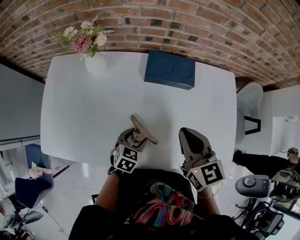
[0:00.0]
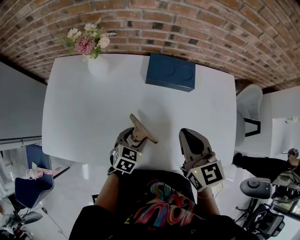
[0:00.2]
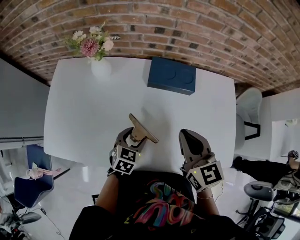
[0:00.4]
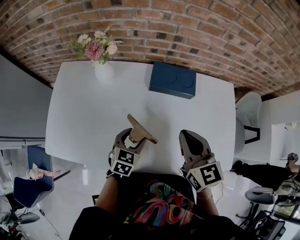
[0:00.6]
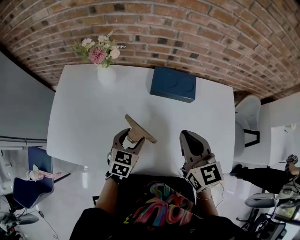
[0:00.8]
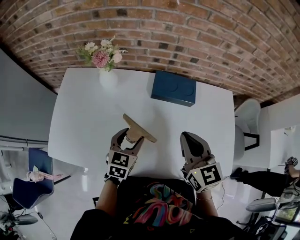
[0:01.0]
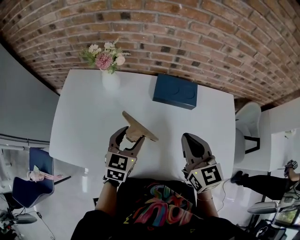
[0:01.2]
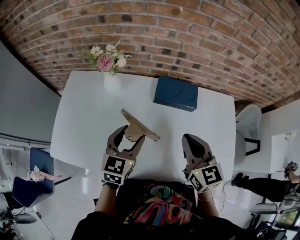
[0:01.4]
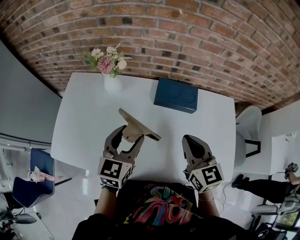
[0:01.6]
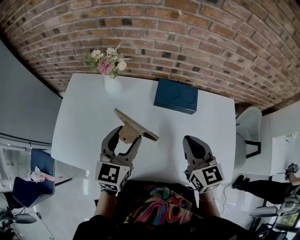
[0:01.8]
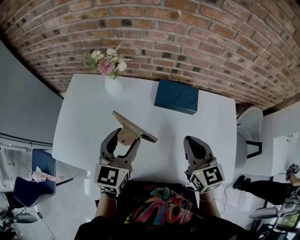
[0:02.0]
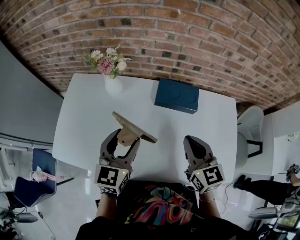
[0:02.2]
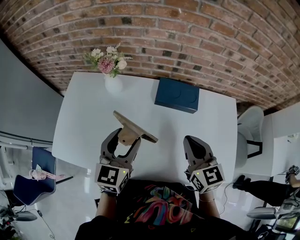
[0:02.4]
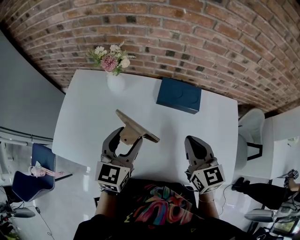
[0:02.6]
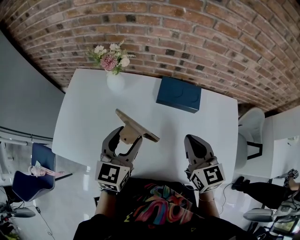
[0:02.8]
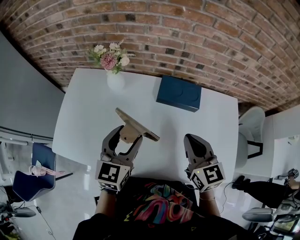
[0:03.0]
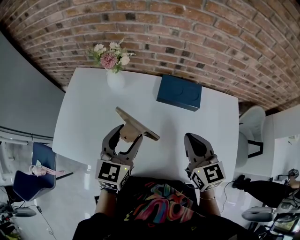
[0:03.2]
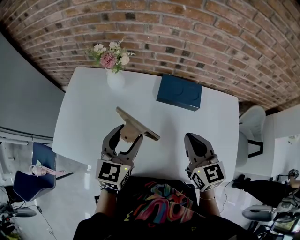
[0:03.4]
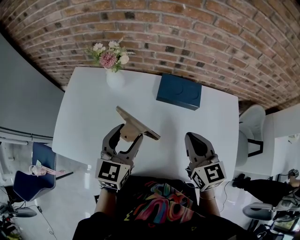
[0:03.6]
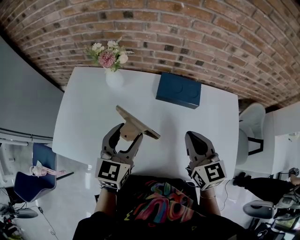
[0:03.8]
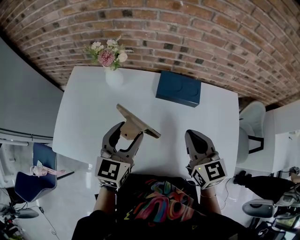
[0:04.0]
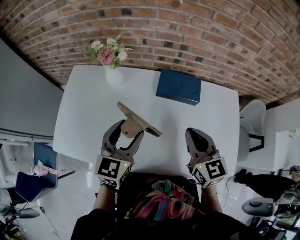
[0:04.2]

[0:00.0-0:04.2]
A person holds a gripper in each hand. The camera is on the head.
0:00.0 to 0:01.4: The left gripper moves upward, roughly 20 cm, and turns by roughly 30 degrees.
0:01.4 to 0:02.8: The grippers make only small movements.
0:02.8 to 0:04.2: Both grippers stay put.

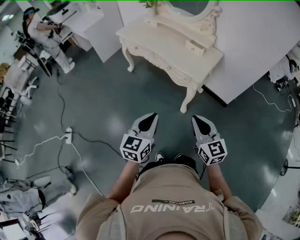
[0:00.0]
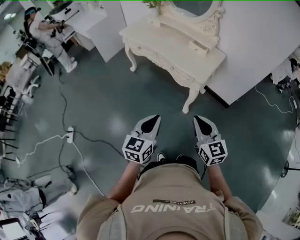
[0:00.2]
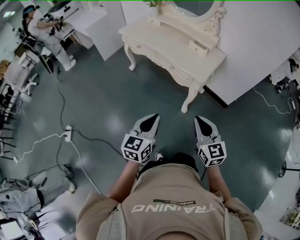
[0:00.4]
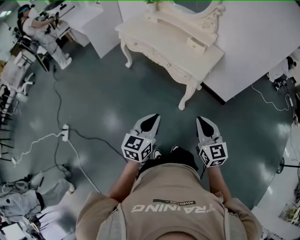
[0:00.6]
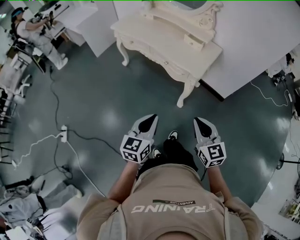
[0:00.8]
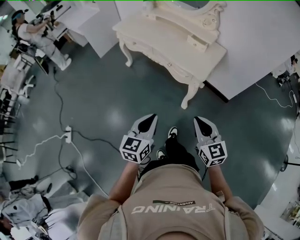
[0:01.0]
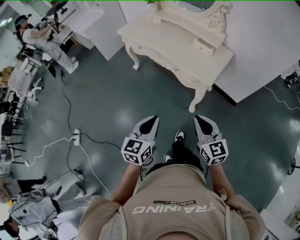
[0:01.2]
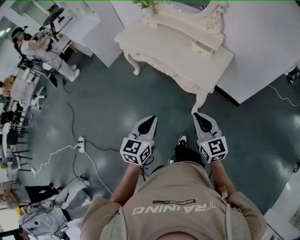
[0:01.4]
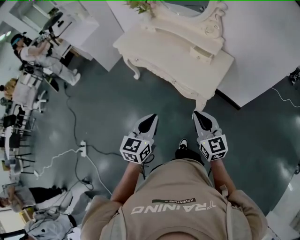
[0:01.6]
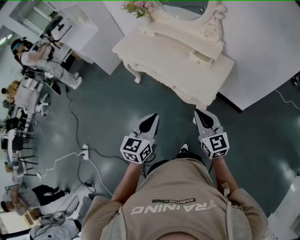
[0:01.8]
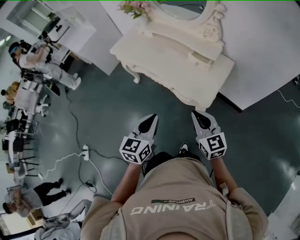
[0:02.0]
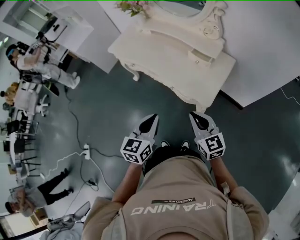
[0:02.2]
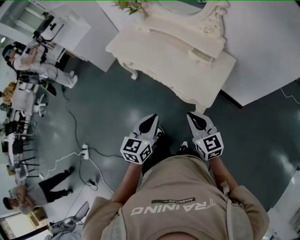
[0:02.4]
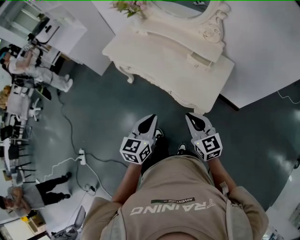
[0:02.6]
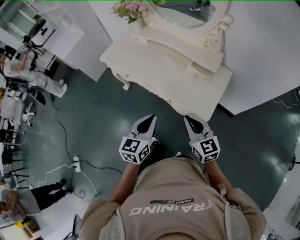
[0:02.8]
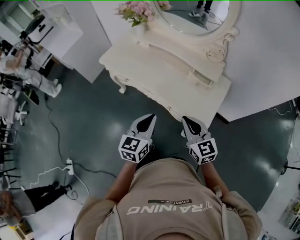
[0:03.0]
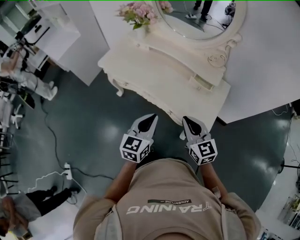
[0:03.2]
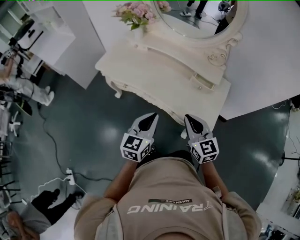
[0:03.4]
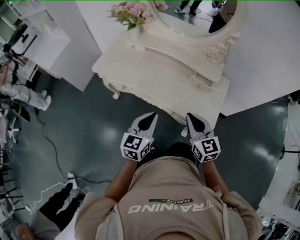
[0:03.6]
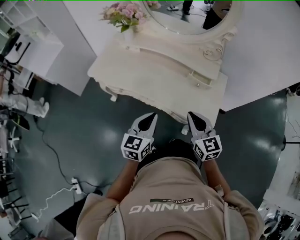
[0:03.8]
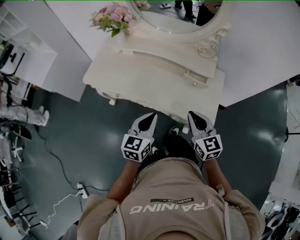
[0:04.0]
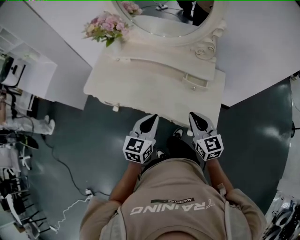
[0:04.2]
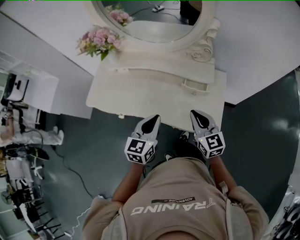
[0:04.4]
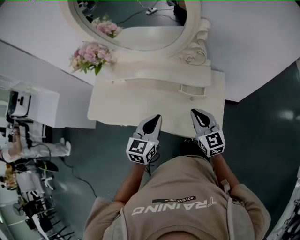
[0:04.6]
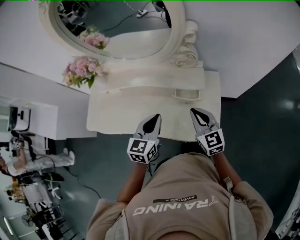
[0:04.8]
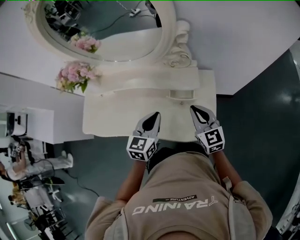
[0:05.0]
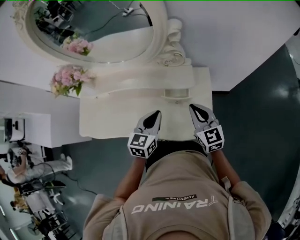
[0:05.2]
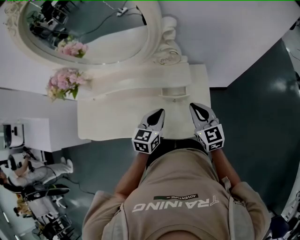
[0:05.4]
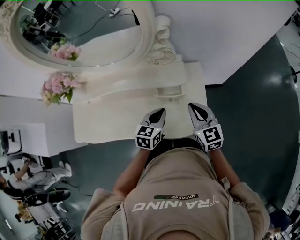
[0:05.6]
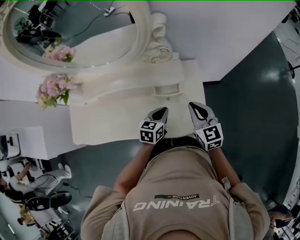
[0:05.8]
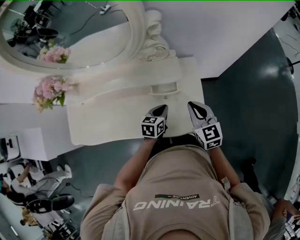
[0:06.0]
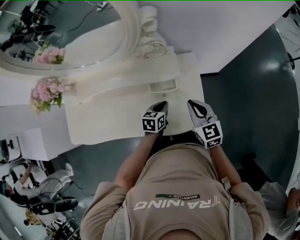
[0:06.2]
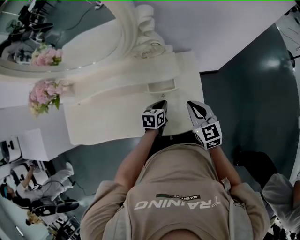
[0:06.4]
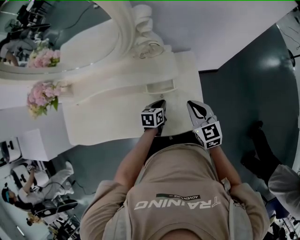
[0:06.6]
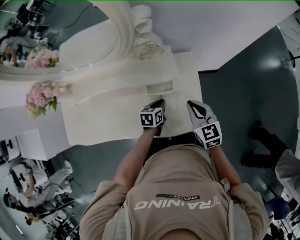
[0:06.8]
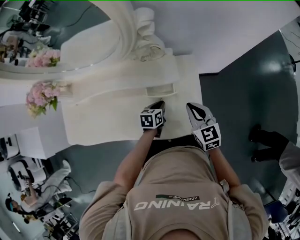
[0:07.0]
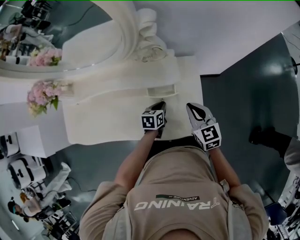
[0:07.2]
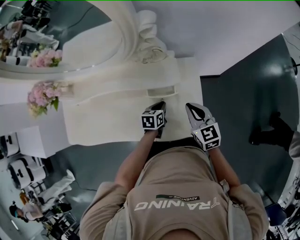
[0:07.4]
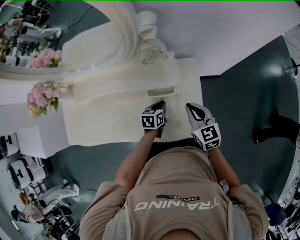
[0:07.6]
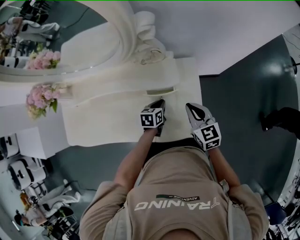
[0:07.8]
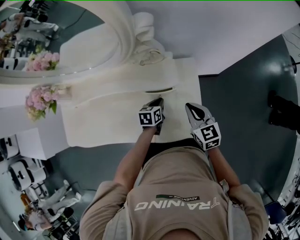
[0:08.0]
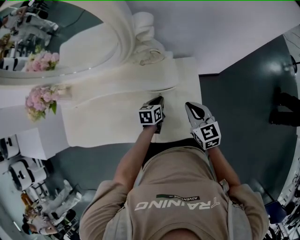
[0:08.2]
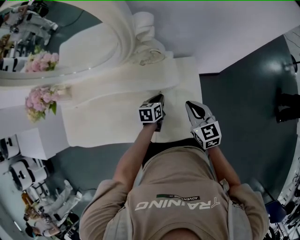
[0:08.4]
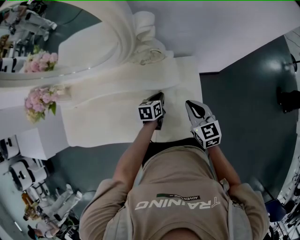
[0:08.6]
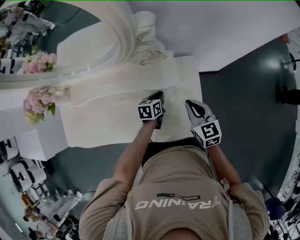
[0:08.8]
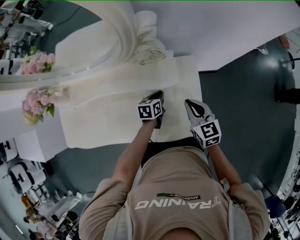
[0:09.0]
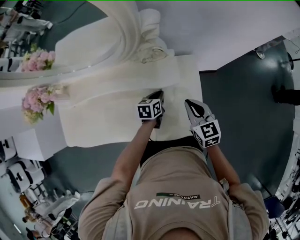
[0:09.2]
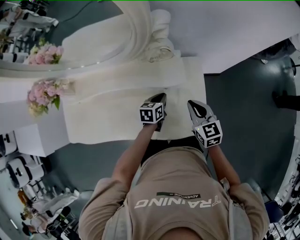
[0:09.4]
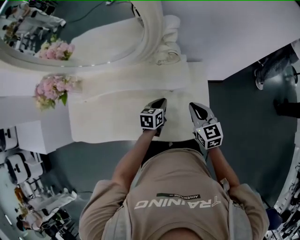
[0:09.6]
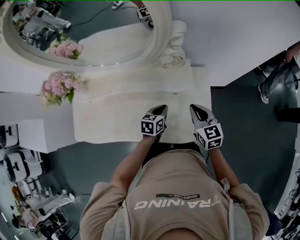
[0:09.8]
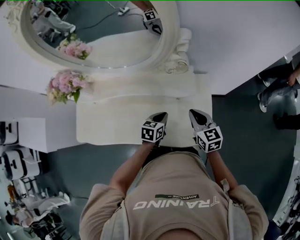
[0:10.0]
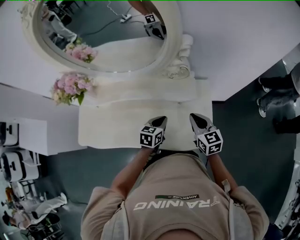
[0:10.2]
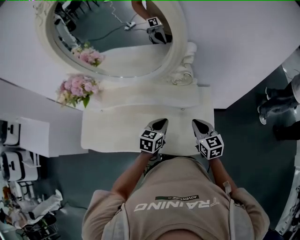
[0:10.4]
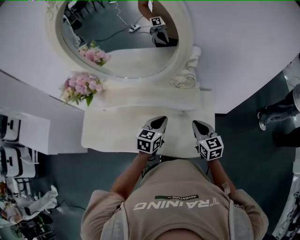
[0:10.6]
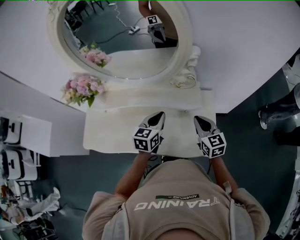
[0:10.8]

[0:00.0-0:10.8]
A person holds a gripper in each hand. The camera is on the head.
0:00.0 to 0:01.6: Both grippers travel together forward, roughly 20 cm.
0:01.6 to 0:03.0: Both grippers move forward, about 20 cm.
0:03.0 to 0:04.6: Both grippers travel together forward, approximately 20 cm. The left gripper turns by approximately 20 degrees, while the right gripper swivels some 20 degrees.
0:04.6 to 0:06.2: The left gripper travels downward, to the right and forward by roughly 25 cm, and swivels about 30 degrees. Meanwhile the right gripper goes some 15 cm to the right, downward and forward.
0:06.2 to 0:07.8: The left gripper ends up about 5 cm from where it was.
0:07.8 to 0:09.2: The grippers move only a little.
0:09.2 to 0:10.8: The right gripper moves upward and to the left, some 10 cm. Meanwhile the left gripper travels upward and to the left by roughly 25 cm, and changes its angle by approximately 30 degrees.

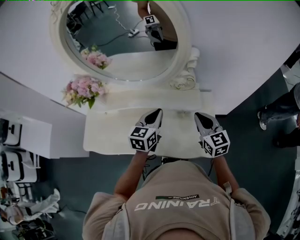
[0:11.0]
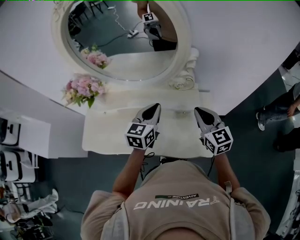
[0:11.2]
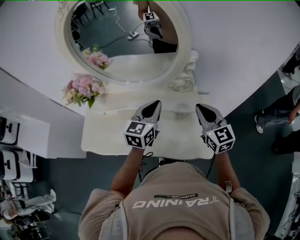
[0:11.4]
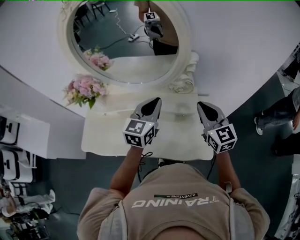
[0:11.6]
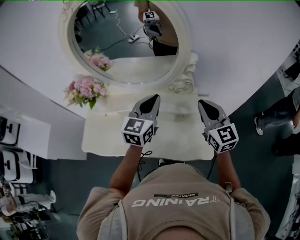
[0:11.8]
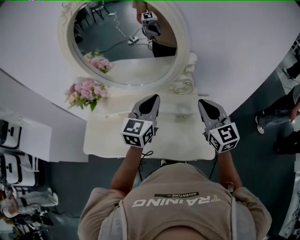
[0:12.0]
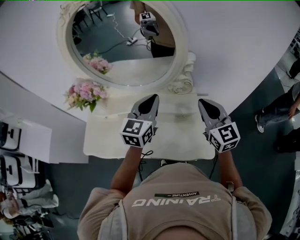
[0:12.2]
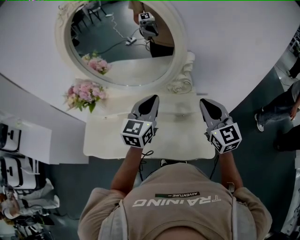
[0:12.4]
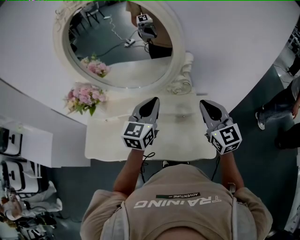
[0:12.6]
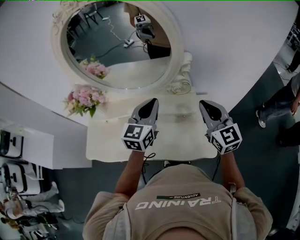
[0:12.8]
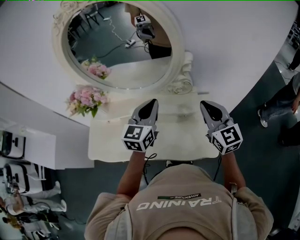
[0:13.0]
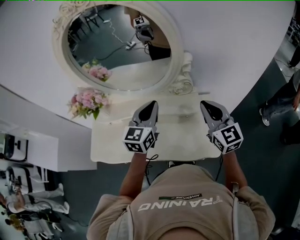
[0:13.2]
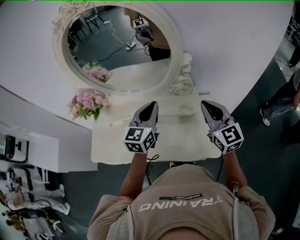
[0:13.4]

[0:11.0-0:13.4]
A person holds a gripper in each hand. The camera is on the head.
0:11.0 to 0:12.2: The grippers both shift upward by some 10 cm.
0:12.2 to 0:13.4: There are only small adjustments of the grippers.

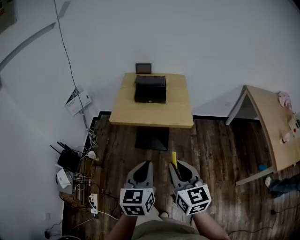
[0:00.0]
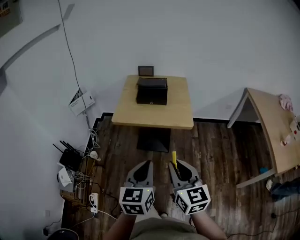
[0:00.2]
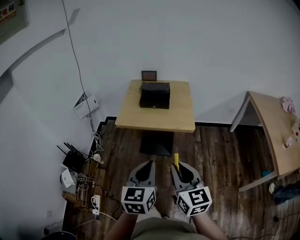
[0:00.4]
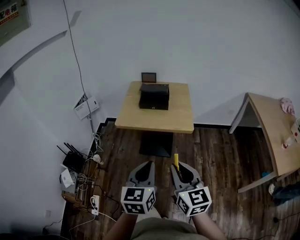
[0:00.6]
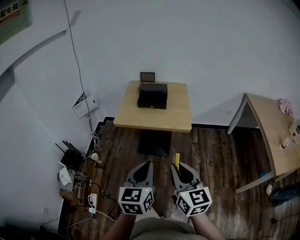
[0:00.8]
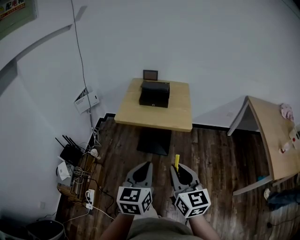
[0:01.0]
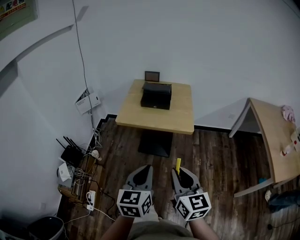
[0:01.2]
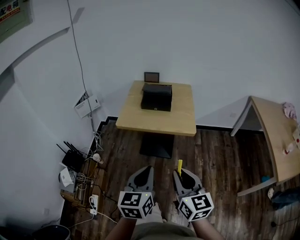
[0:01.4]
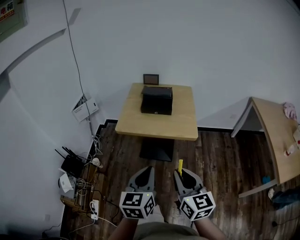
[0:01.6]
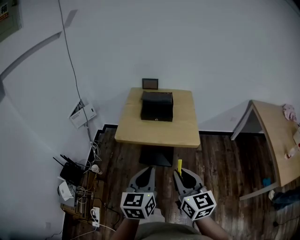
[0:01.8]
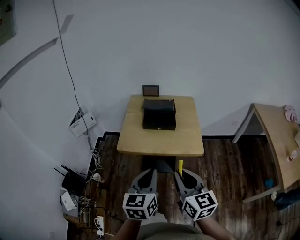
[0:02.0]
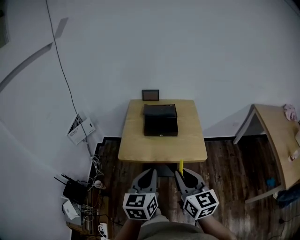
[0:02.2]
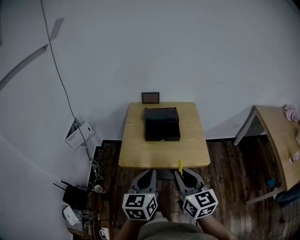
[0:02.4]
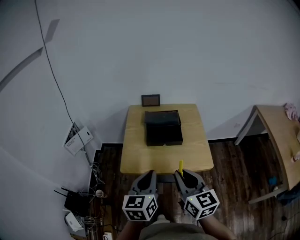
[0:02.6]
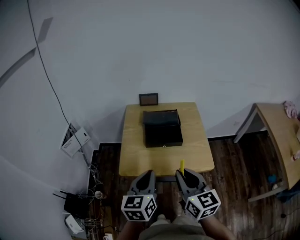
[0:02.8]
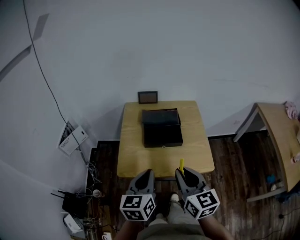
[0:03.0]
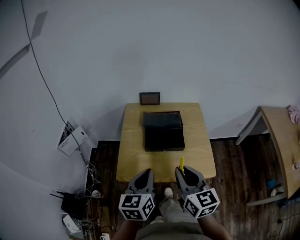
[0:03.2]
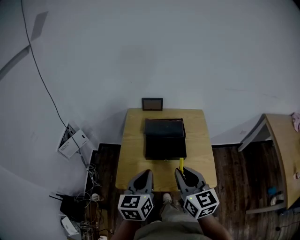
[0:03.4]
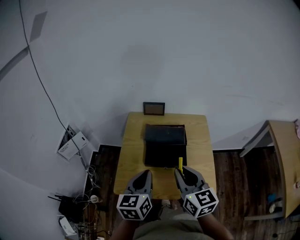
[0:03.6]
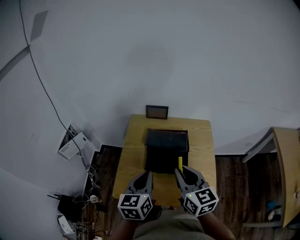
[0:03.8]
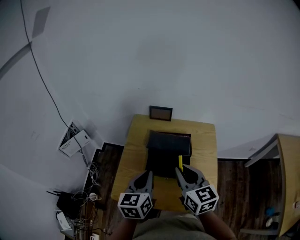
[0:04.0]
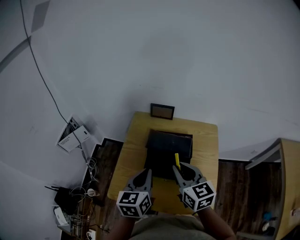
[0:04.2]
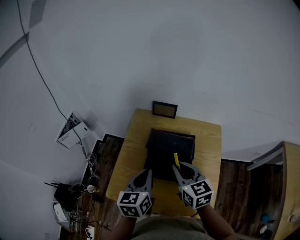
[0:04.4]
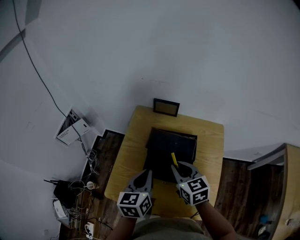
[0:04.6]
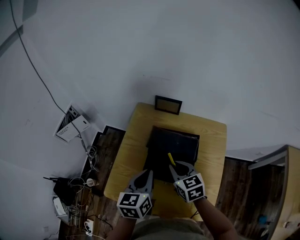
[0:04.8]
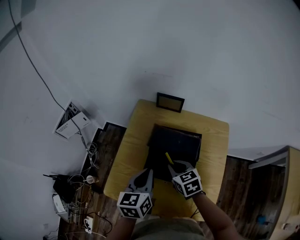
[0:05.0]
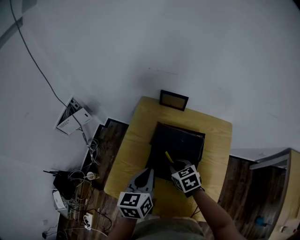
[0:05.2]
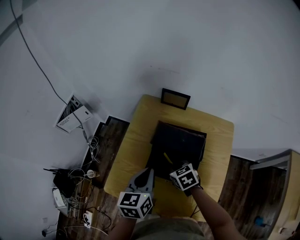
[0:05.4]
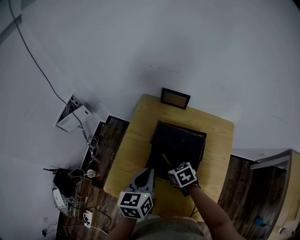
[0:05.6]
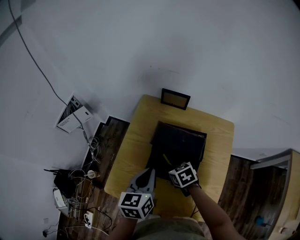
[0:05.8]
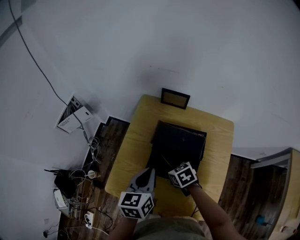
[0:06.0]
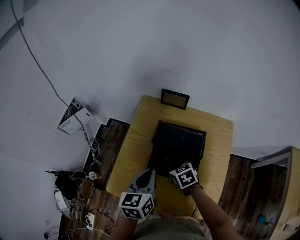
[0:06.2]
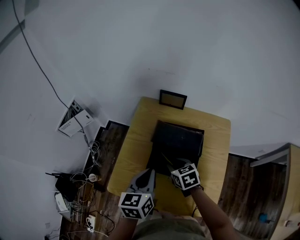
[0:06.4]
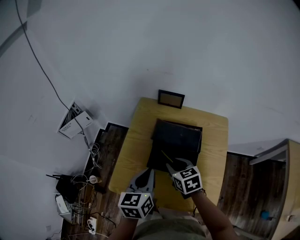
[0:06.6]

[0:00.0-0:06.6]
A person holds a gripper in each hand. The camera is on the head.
0:00.0 to 0:01.6: The left gripper goes backward and returns, some 5 cm each way.
0:01.6 to 0:03.2: Both grippers move forward, roughly 35 cm.
0:03.2 to 0:05.0: The left gripper goes some 20 cm forward and downward. Meanwhile the right gripper moves forward and downward, roughly 35 cm, and angles its fingers downward, by about 30 degrees.
0:05.0 to 0:06.6: The right gripper goes downward and returns, some 5 cm each way.
